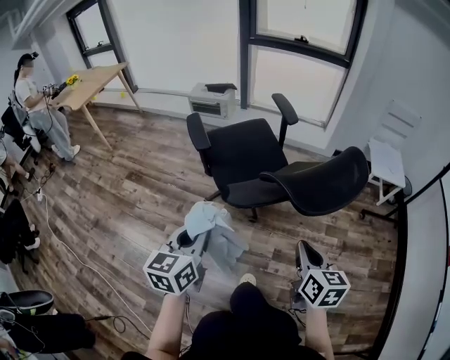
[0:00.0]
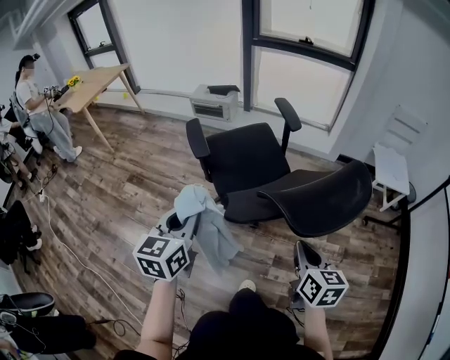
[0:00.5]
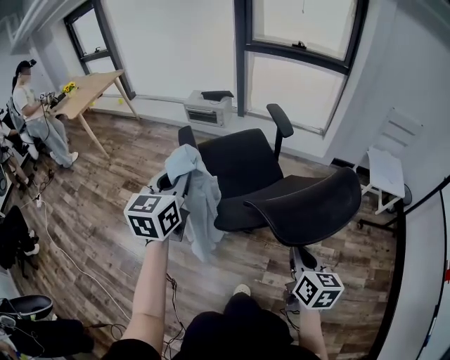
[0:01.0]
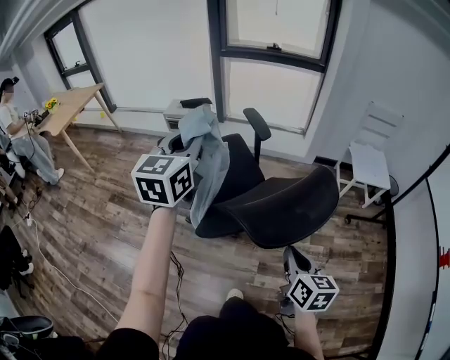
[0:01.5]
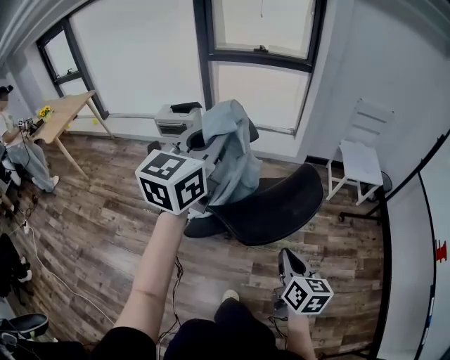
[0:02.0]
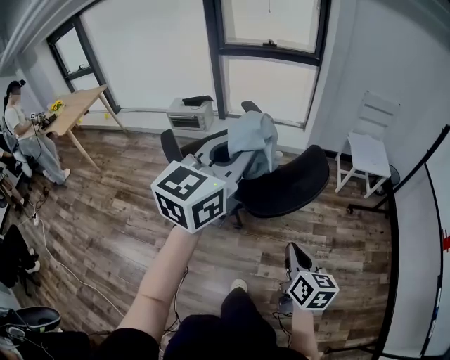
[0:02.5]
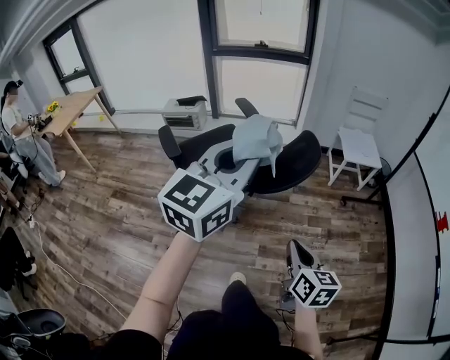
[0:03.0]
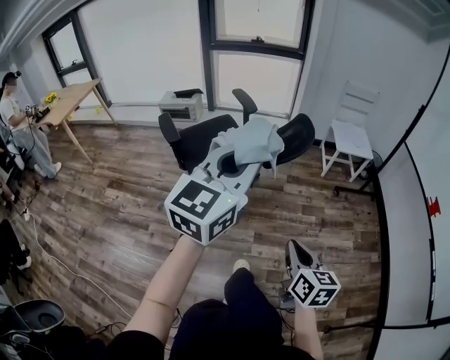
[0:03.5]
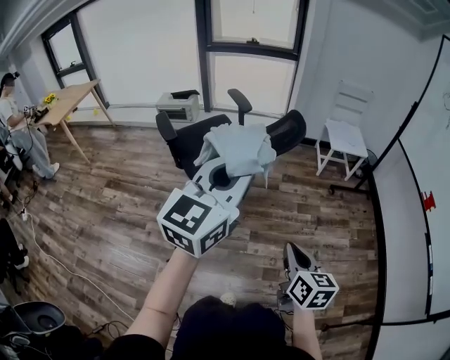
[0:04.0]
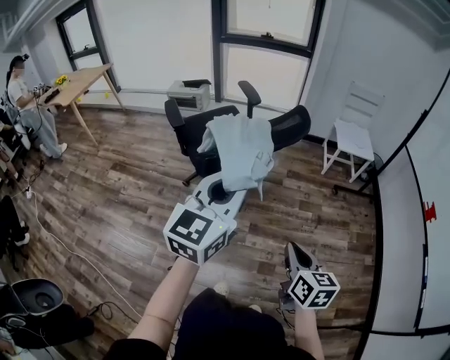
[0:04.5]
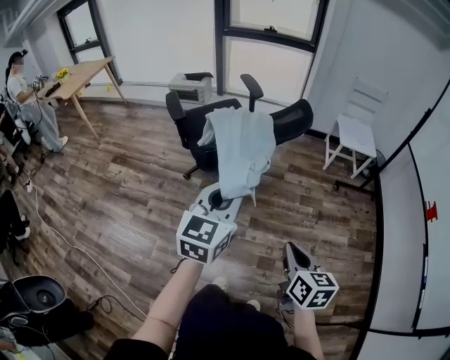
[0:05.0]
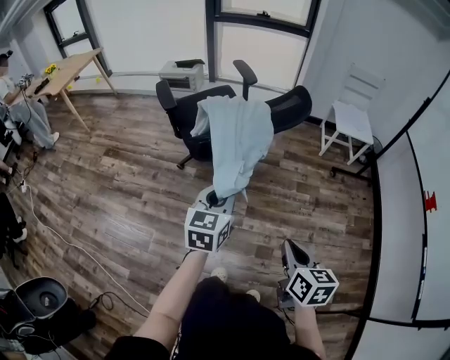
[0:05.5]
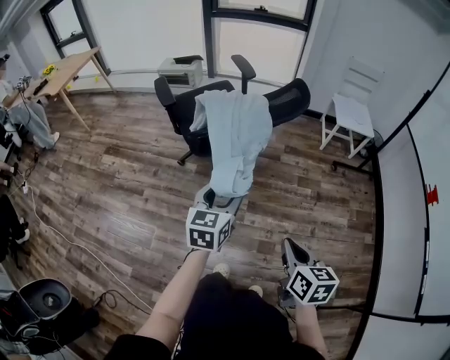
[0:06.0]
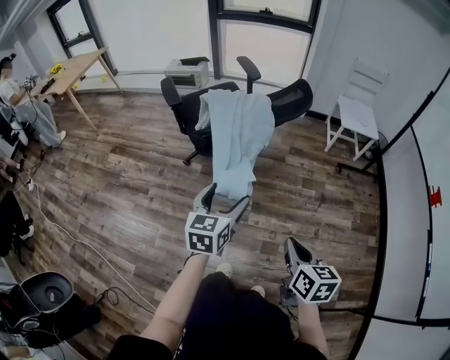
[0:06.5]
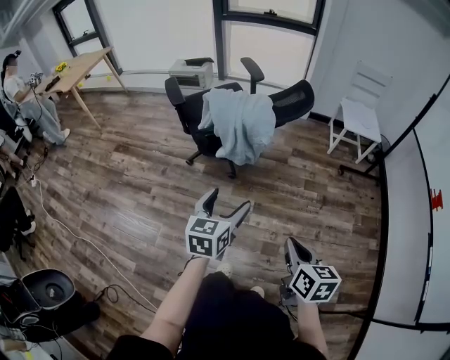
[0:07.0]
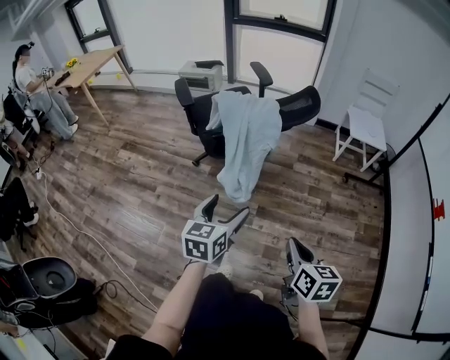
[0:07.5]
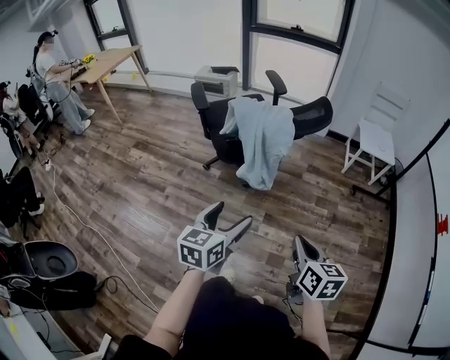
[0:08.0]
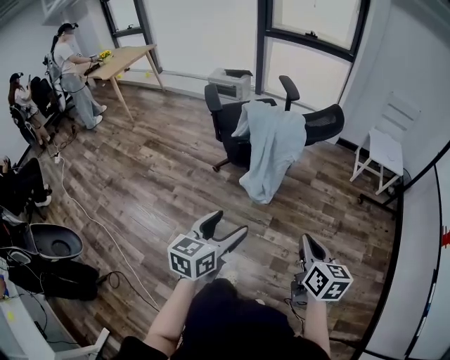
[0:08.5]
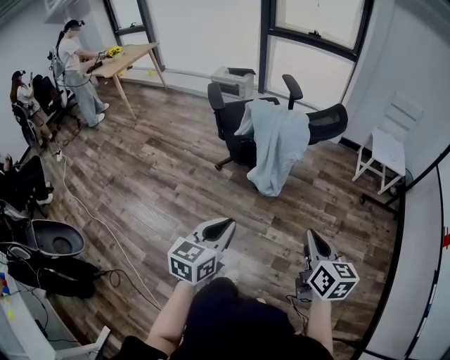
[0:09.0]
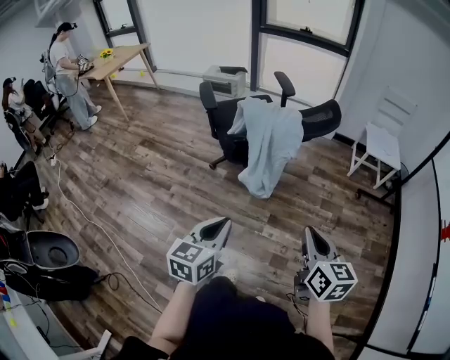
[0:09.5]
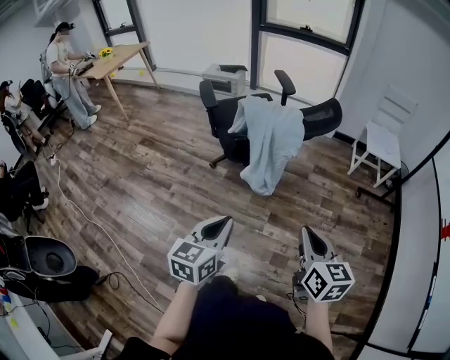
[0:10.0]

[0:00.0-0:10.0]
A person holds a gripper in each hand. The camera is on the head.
0.0 to 2.0 s: The left gripper travels upward, forward and to the right by approximately 40 cm, and swivels roughly 30 degrees. Meanwhile the right gripper moves to the right and forward, about 10 cm.
2.0 to 4.0 s: The grippers both shift backward by about 30 cm.
4.0 to 6.0 s: The right gripper moves about 5 cm; the left gripper is displaced downward by about 25 cm, changes its angle by about 30 degrees, and opens.
6.0 to 8.0 s: The left gripper travels backward by approximately 10 cm, and opens.
8.0 to 10.0 s: The left gripper changes place by approximately 5 cm, and closes its fingers; the right gripper is displaced upward by roughly 5 cm.

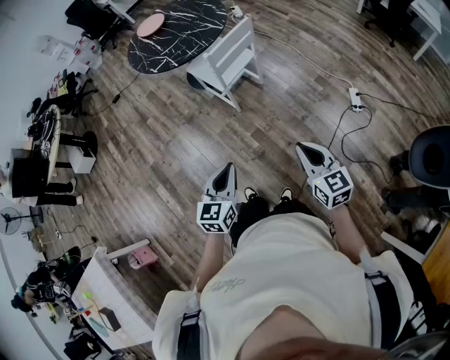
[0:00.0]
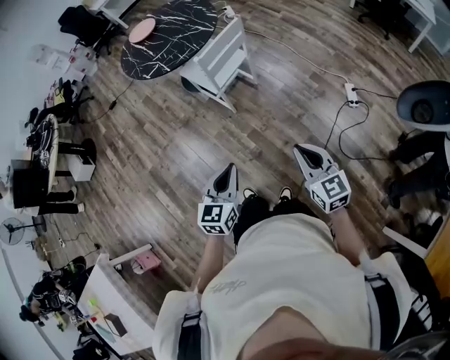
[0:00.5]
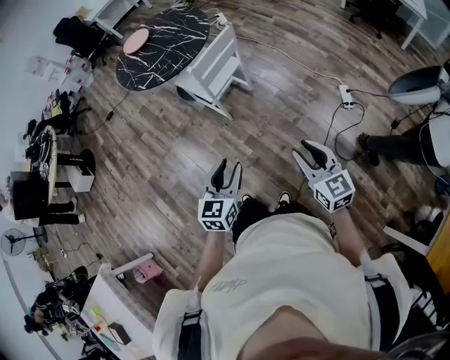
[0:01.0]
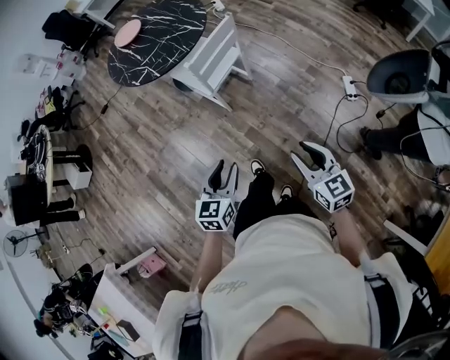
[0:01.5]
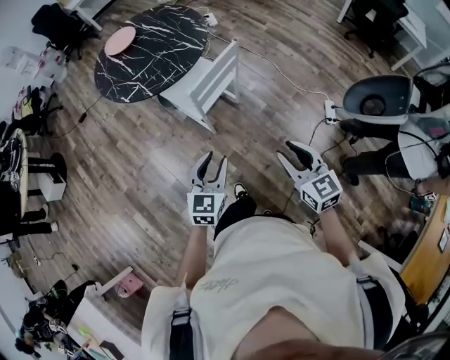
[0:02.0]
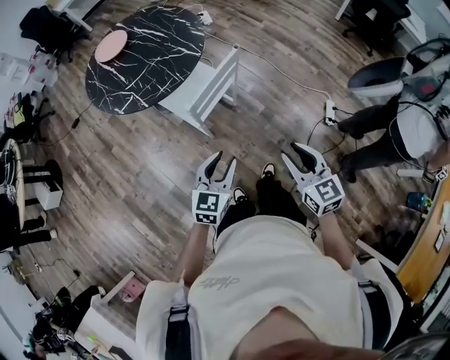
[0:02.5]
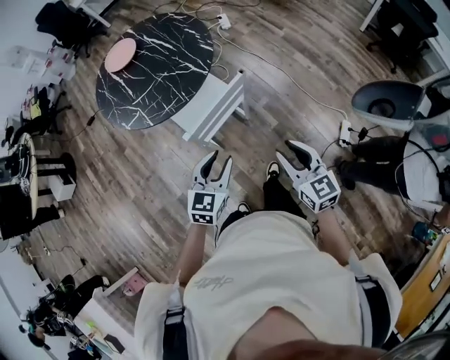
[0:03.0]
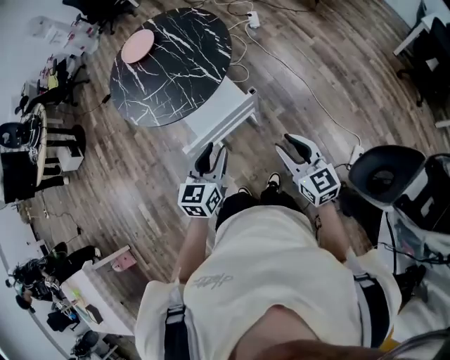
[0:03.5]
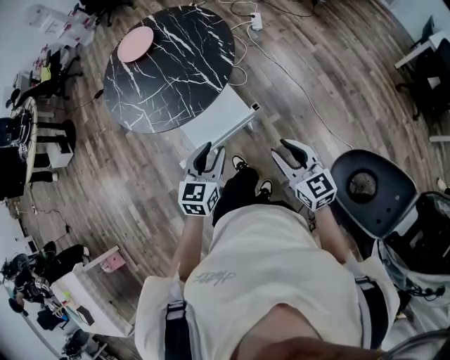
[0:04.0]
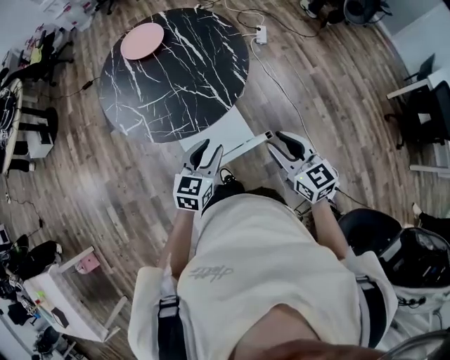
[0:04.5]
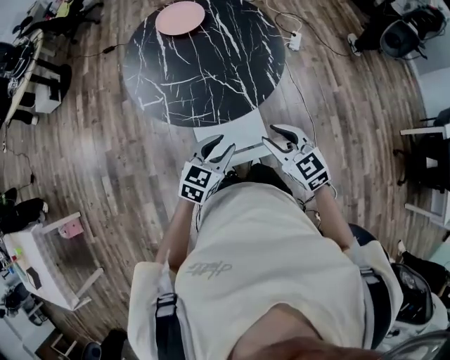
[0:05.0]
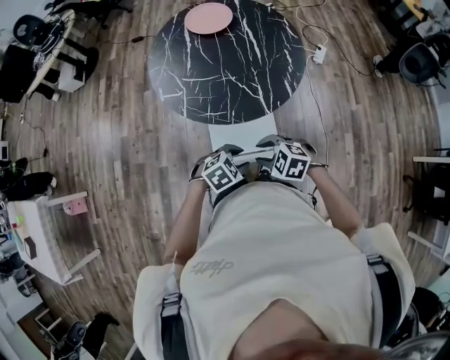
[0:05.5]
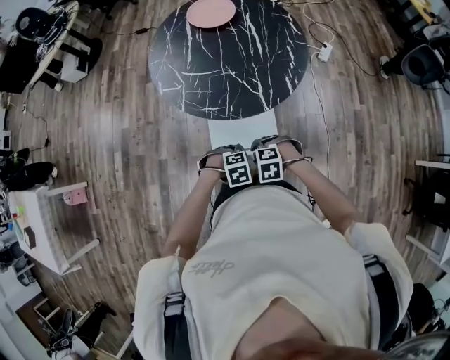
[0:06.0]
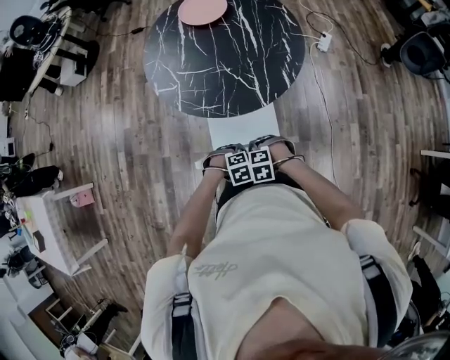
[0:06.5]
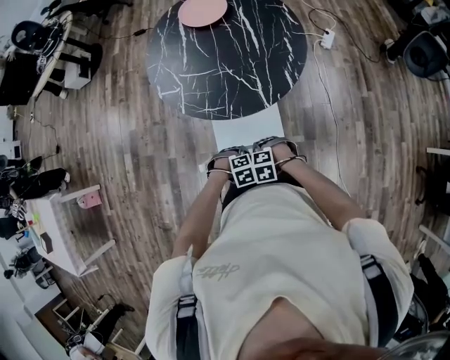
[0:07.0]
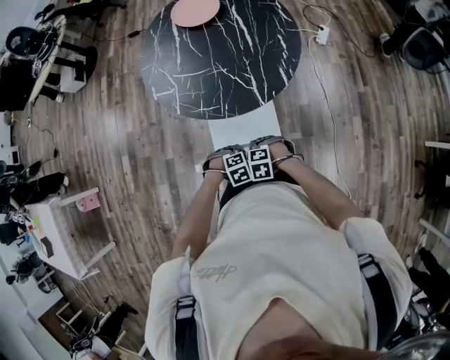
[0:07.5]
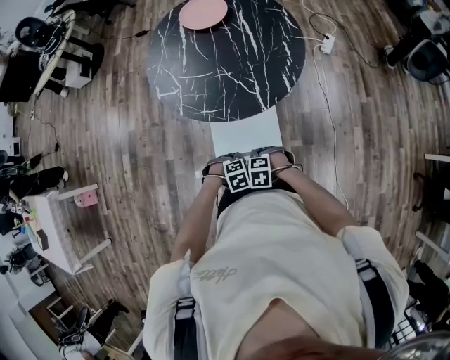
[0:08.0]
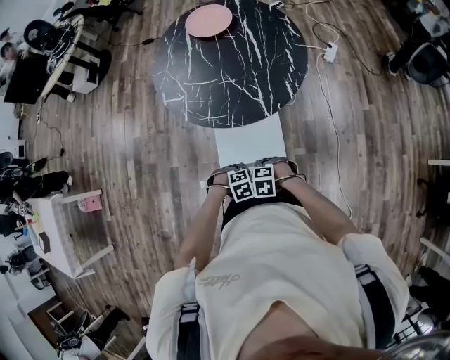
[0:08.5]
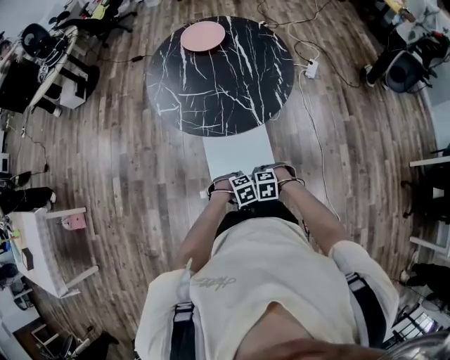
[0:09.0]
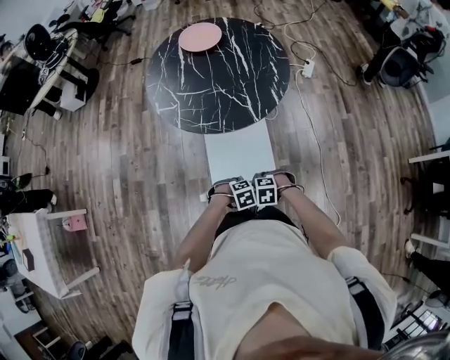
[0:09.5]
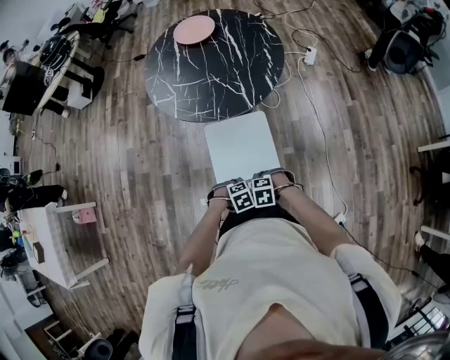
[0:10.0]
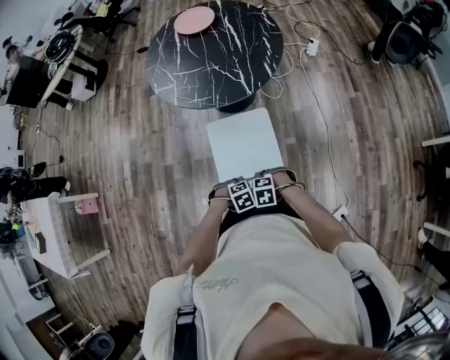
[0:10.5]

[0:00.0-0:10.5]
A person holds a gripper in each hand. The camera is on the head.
0.0 to 2.0 s: The two grippers go approximately 20 cm forward. The right gripper opens; the left gripper opens.
2.0 to 4.0 s: Both grippers travel together forward, about 35 cm. The right gripper rotates roughly 20 degrees.
4.0 to 6.5 s: Both grippers travel together downward, roughly 20 cm. The right gripper angles its fingers downward, by some 60 degrees. The left gripper tips its fingers downward by roughly 50 degrees.
6.5 to 8.5 s: The grippers move only a little.
8.5 to 10.5 s: The left gripper ends up some 20 cm from where it was, while the right gripper moves roughly 20 cm.

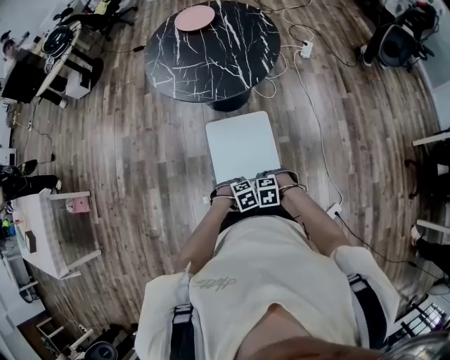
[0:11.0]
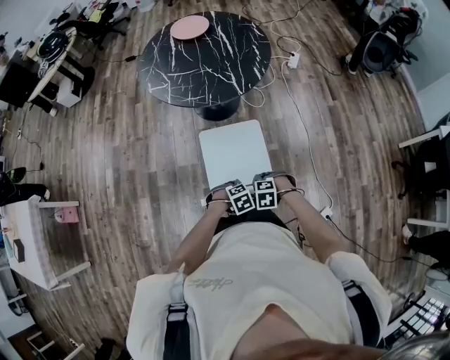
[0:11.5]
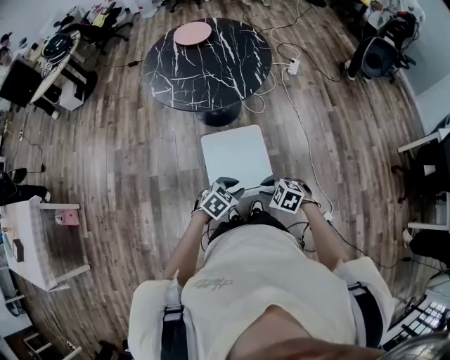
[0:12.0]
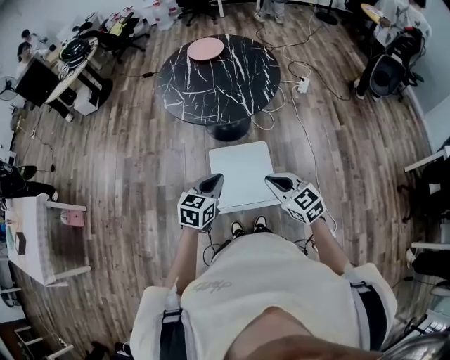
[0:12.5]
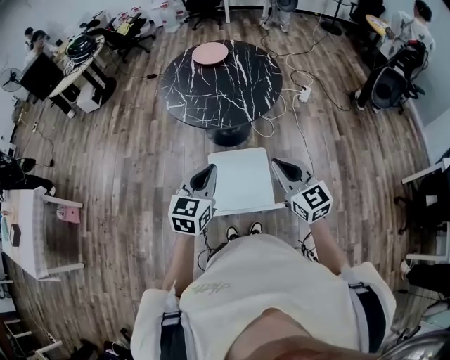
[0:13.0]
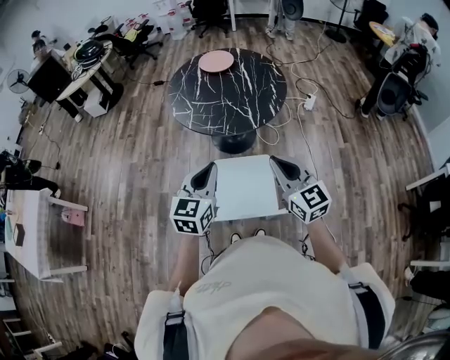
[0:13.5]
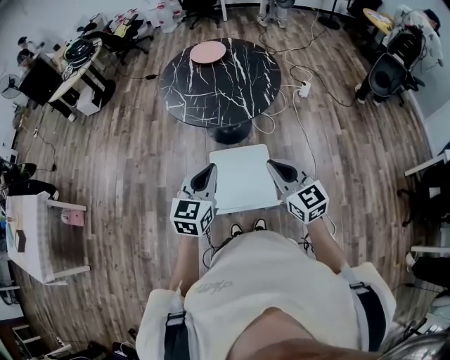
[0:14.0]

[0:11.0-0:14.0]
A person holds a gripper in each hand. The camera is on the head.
11.0 to 12.5 s: The two grippers go some 25 cm upward. The right gripper tilts its fingers about 50 degrees upward, and closes. The left gripper tilts its fingers approximately 50 degrees upward.
12.5 to 14.0 s: Both grippers move upward, approximately 10 cm.

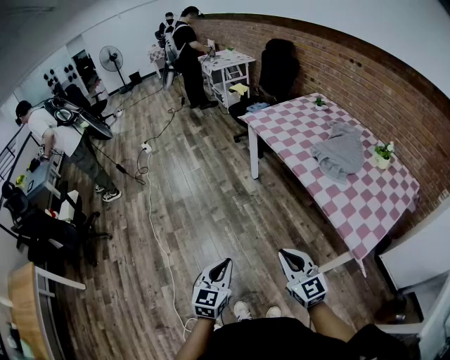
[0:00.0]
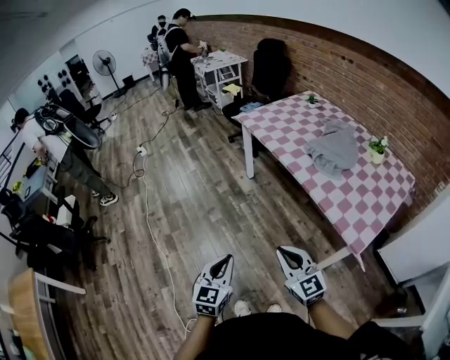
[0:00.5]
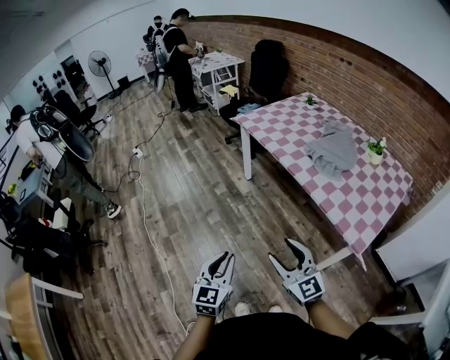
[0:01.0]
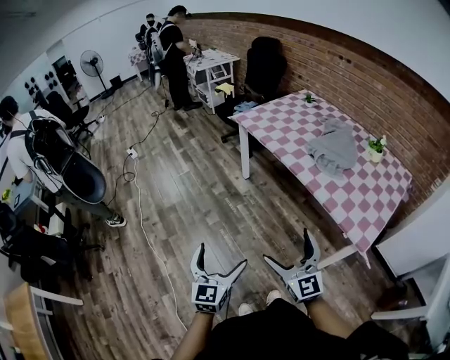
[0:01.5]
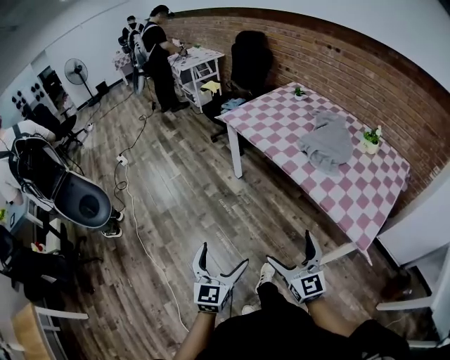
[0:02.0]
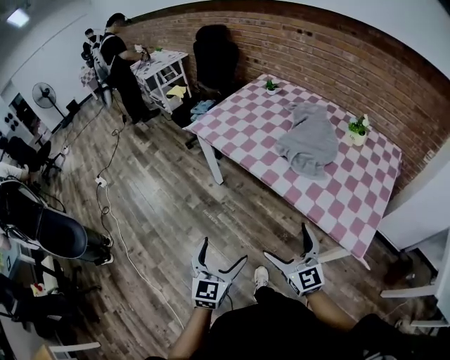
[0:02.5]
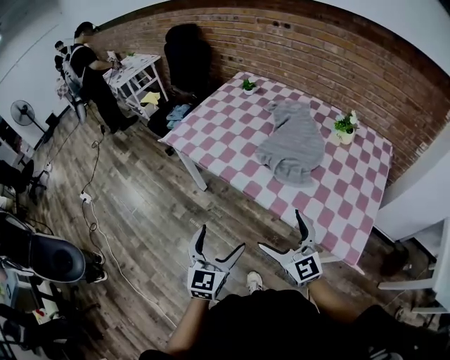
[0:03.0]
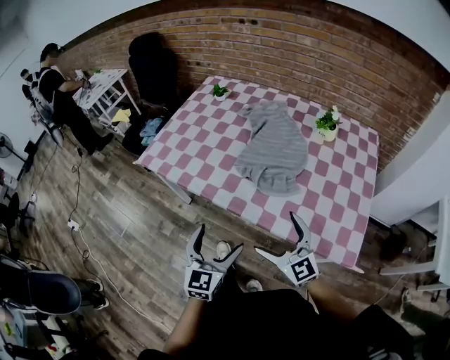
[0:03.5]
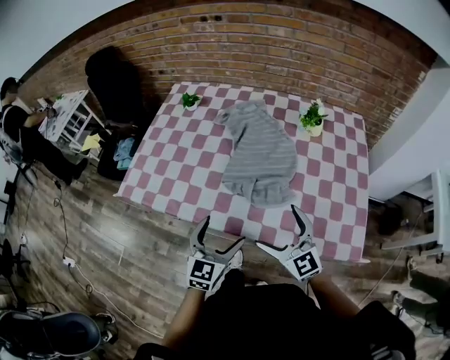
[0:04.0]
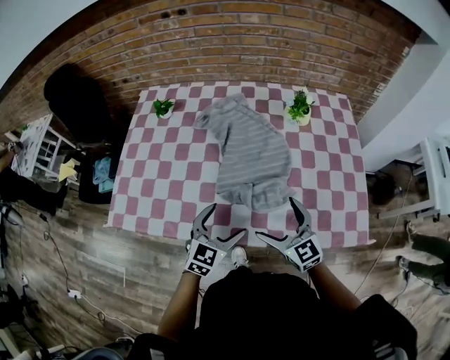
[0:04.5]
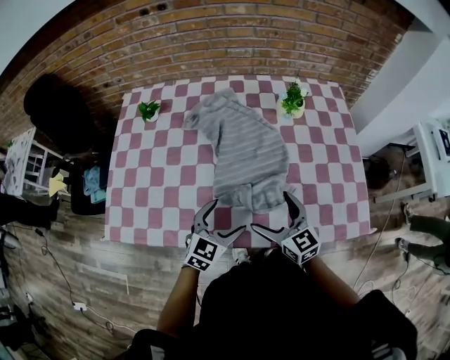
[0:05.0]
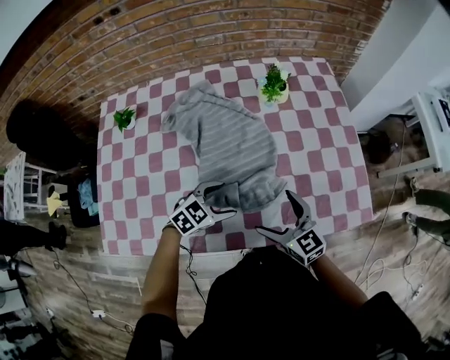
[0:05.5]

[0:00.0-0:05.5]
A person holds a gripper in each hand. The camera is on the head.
0.0 to 2.0 s: Both grippers travel together forward, roughly 10 cm. The right gripper opens up; the left gripper opens.
2.0 to 3.5 s: The grippers both shift forward and to the right by roughly 35 cm. The left gripper changes its angle by roughly 30 degrees.
3.5 to 5.5 s: The right gripper shifts by some 20 cm, and rotates about 40 degrees; the left gripper moves about 35 cm, and angles its fingers downward, by about 30 degrees.
